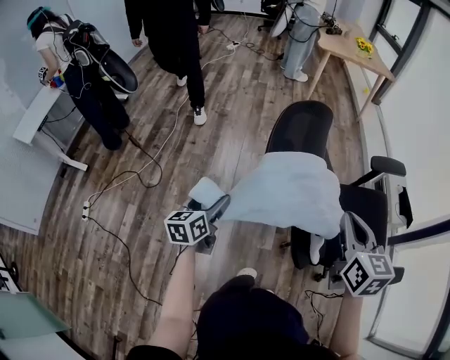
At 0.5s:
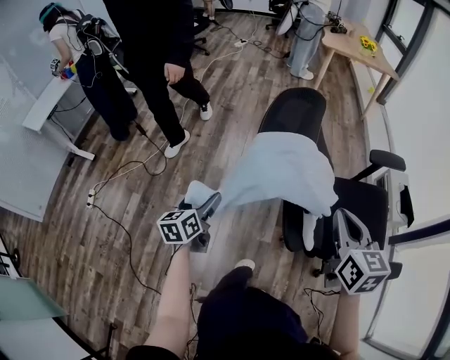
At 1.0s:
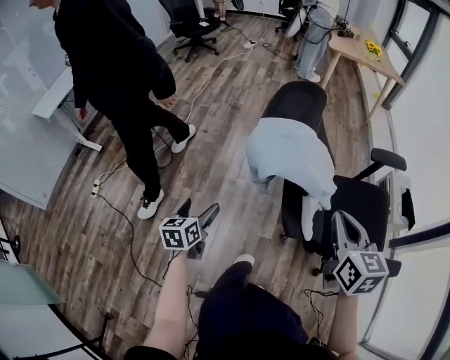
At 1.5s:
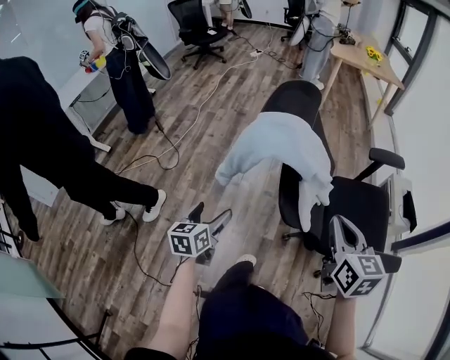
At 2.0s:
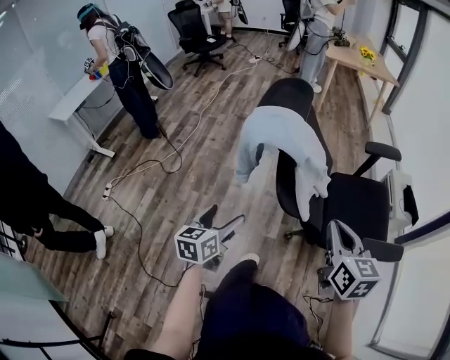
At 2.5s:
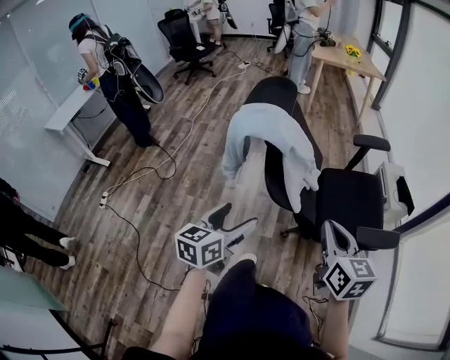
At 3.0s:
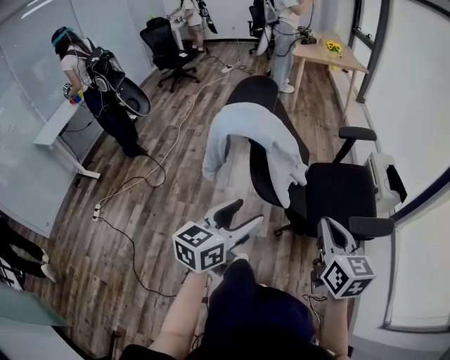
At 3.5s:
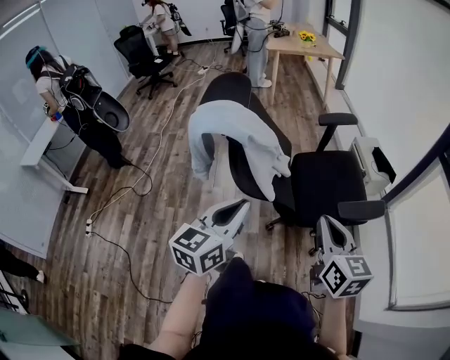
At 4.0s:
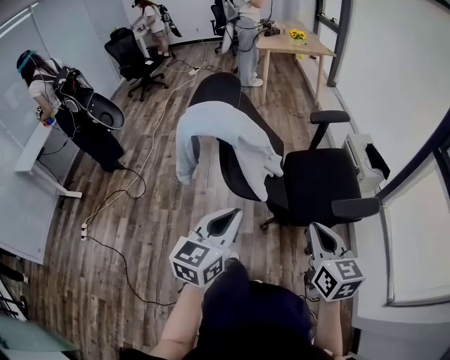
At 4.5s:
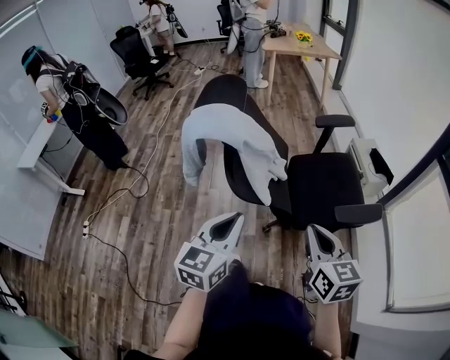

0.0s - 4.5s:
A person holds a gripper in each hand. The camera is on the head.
0.0s - 2.0s: The two grippers go about 25 cm backward.
2.0s - 4.5s: The left gripper travels to the right and upward by roughly 20 cm, swivels about 30 degrees, and closes its fingers. Meanwhile the right gripper travels to the right and backward by some 10 cm.

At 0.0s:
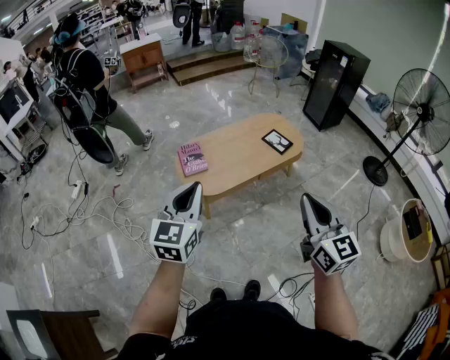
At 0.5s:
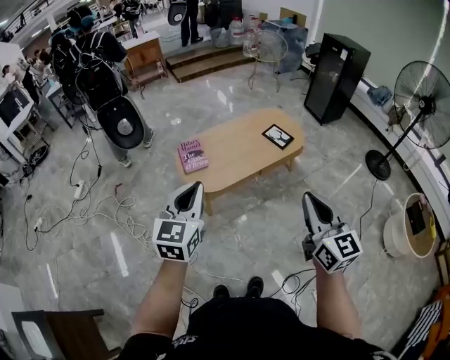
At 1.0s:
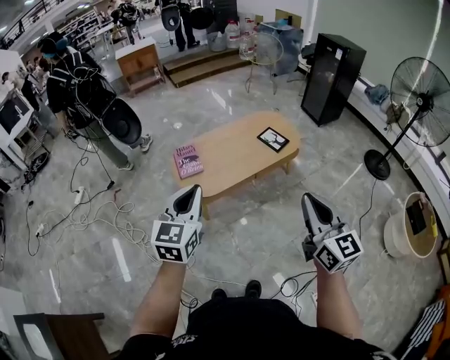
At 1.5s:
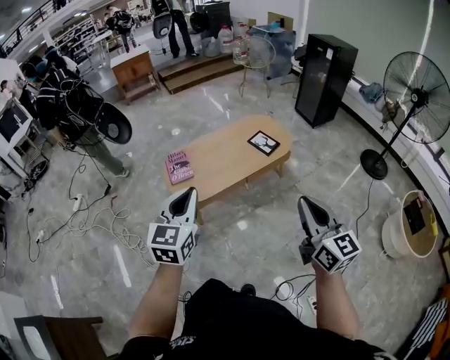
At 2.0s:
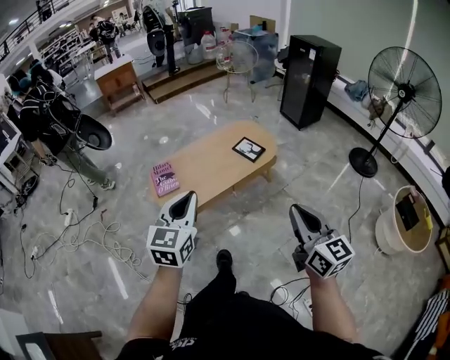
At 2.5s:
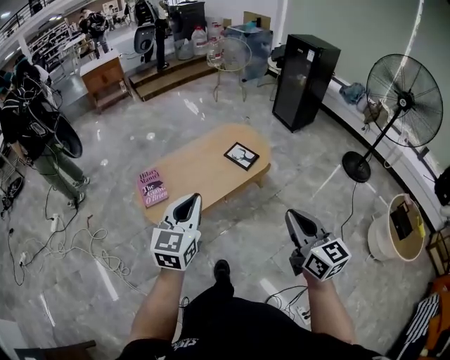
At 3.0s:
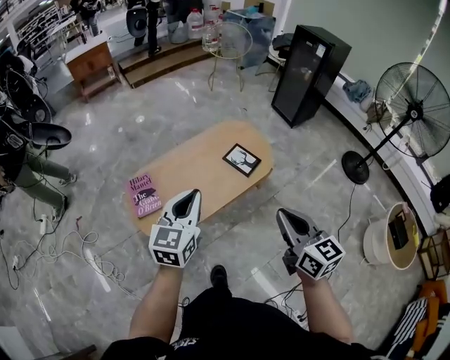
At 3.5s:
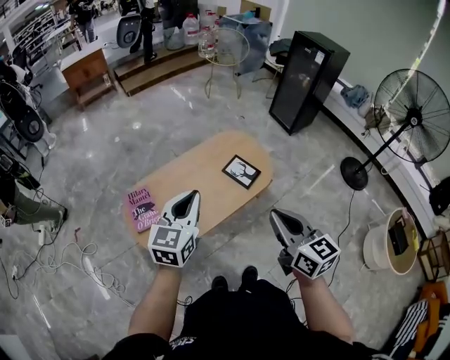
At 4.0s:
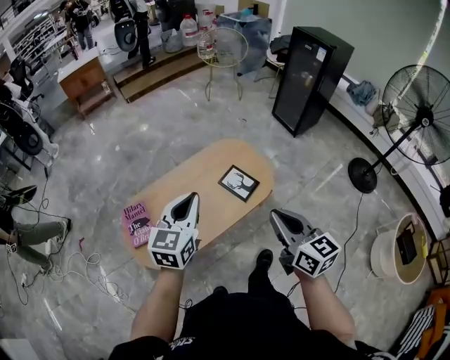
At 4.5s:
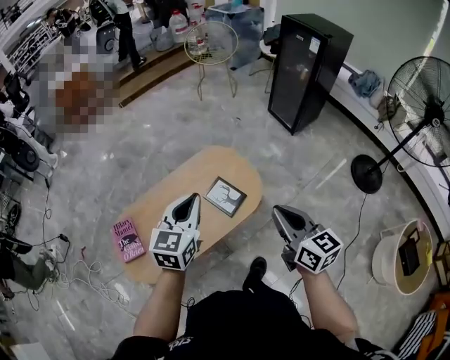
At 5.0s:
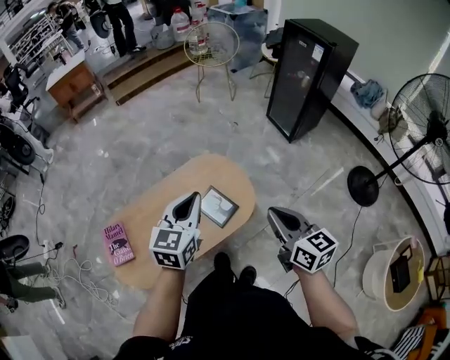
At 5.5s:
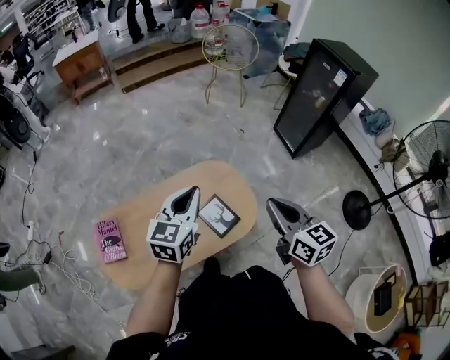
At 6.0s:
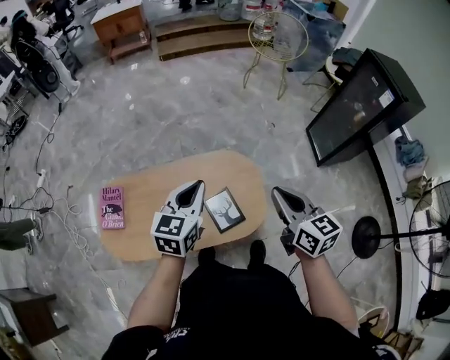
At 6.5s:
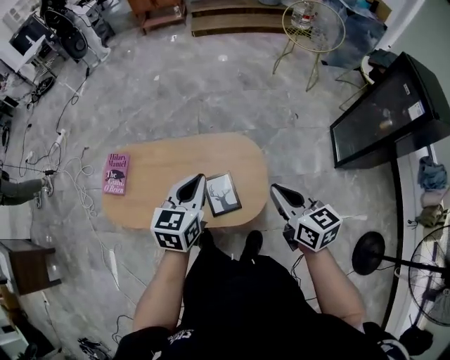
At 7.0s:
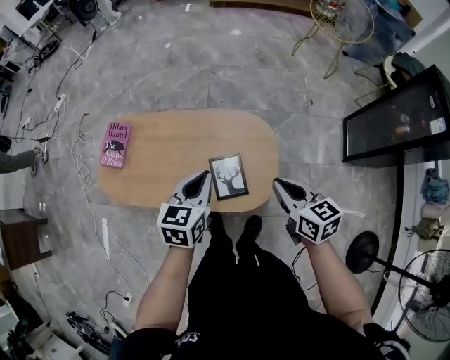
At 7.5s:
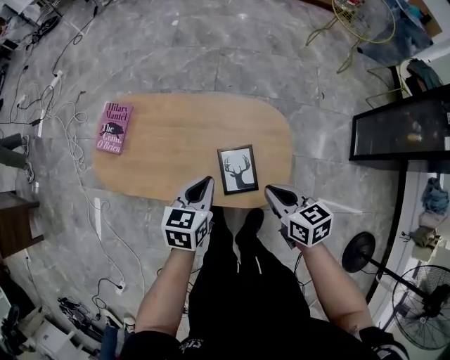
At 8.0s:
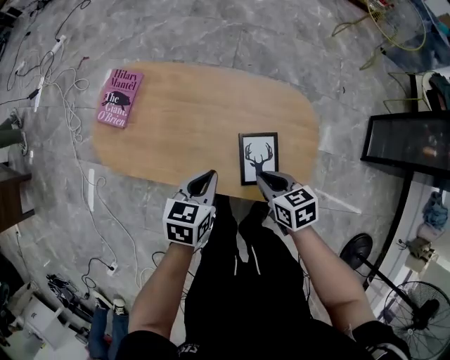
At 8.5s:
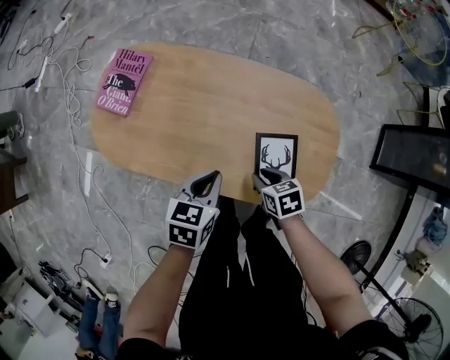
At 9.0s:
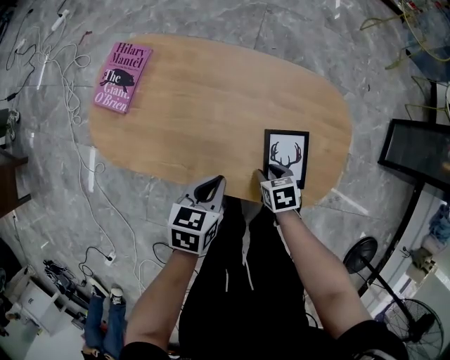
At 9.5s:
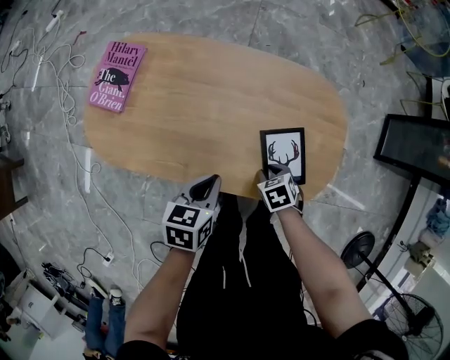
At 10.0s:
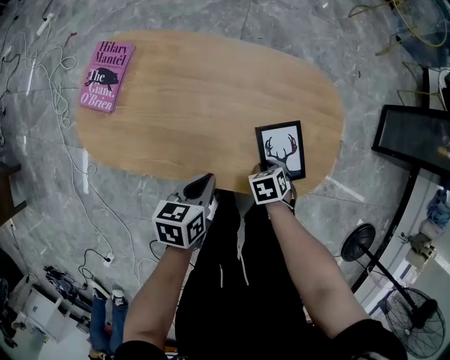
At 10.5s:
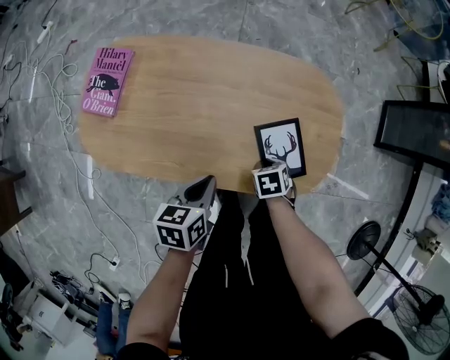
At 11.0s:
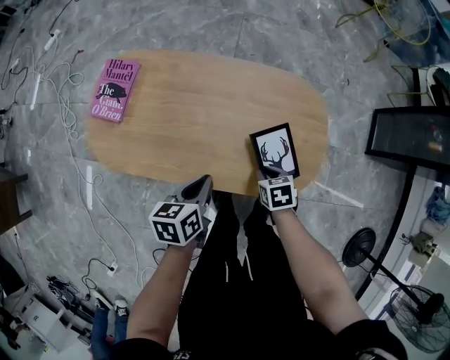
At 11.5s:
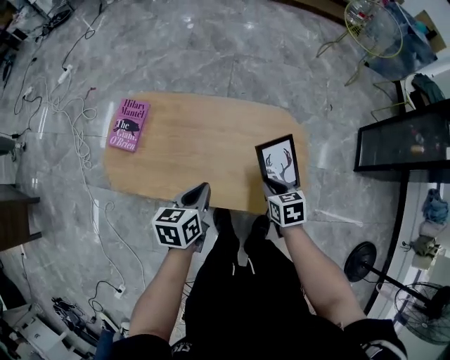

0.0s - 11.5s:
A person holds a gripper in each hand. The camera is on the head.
0.0s - 2.0s: Both grippers travel together to the right, roughly 15 cm.
2.0s - 4.0s: Both grippers are carried forward, approximately 40 cm.
4.0s - 6.0s: Both grippers travel together forward and to the right, some 35 cm. The left gripper rotates approximately 20 degrees. Meanwhile the right gripper turns by approximately 20 degrees.
6.0s - 7.5s: Both grippers travel together downward, some 20 cm. The left gripper rotates some 30 degrees, while the right gripper rotates approximately 40 degrees.
7.5s - 9.5s: The right gripper goes roughly 35 cm downward, tips its fingers downward by approximately 40 degrees, and opens its fingers. Meanwhile the left gripper heads downward, covering approximately 20 cm.
9.5s - 11.5s: The two grippers go some 20 cm upward. The right gripper turns by about 30 degrees.

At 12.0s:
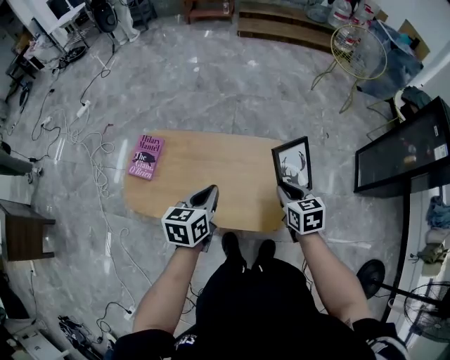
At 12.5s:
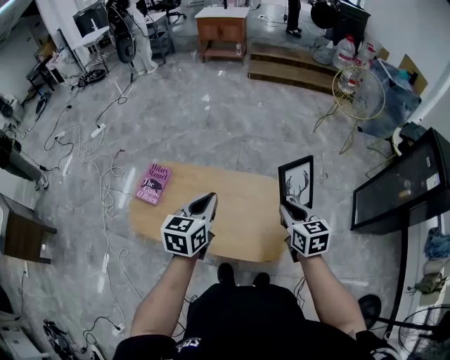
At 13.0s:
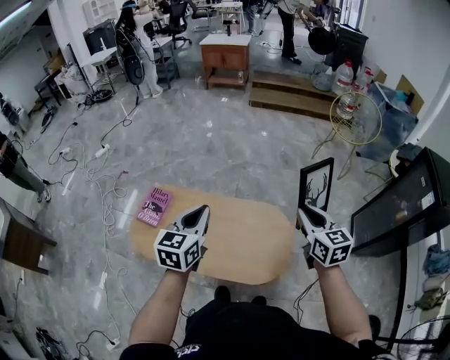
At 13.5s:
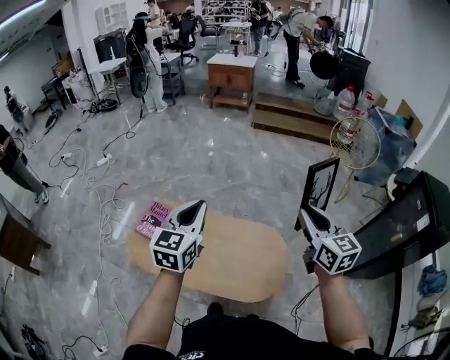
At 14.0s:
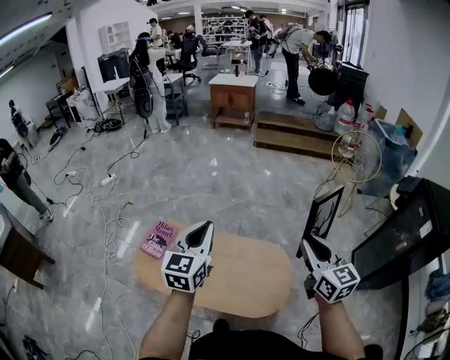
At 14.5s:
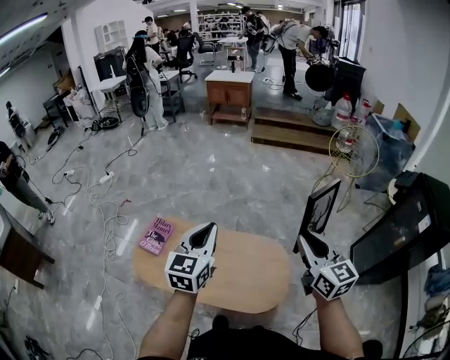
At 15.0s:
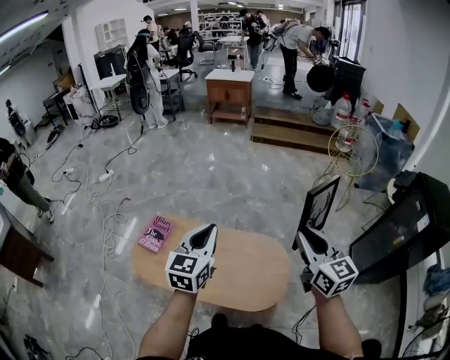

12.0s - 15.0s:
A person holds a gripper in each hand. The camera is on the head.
12.0s - 13.5s: Both grippers move upward, some 30 cm. The right gripper points its fingers about 30 degrees further upward; the left gripper changes its angle by about 30 degrees.
13.5s - 15.0s: The right gripper goes about 5 cm backward.

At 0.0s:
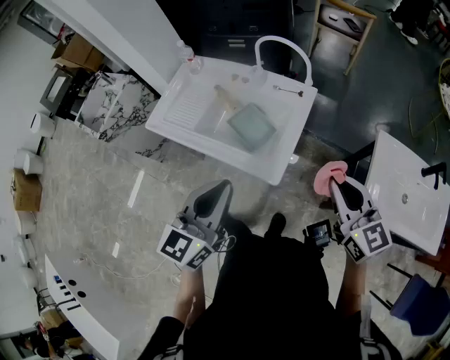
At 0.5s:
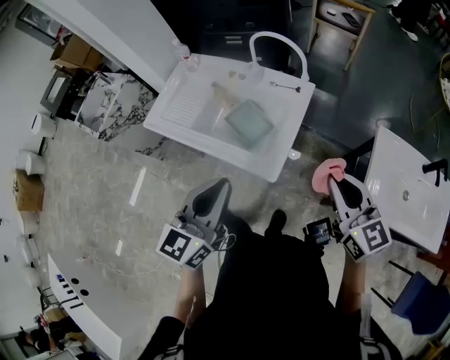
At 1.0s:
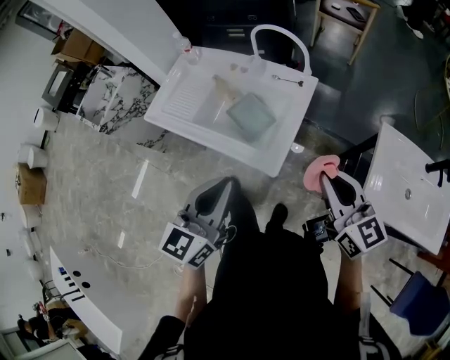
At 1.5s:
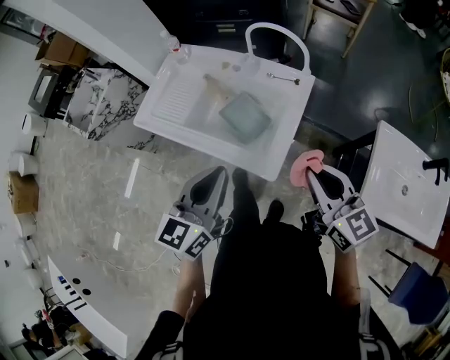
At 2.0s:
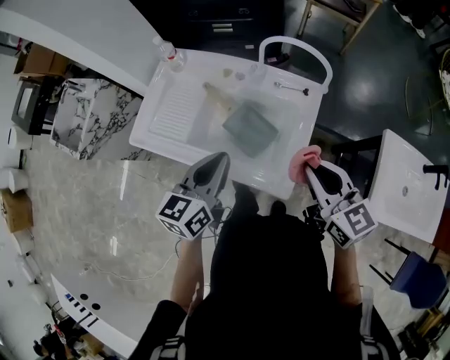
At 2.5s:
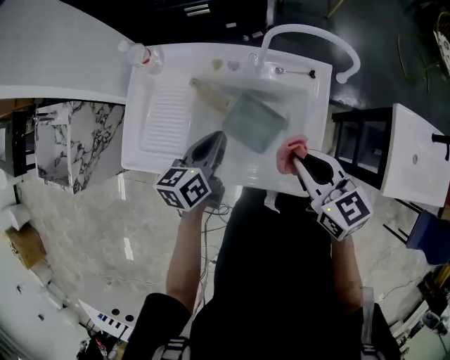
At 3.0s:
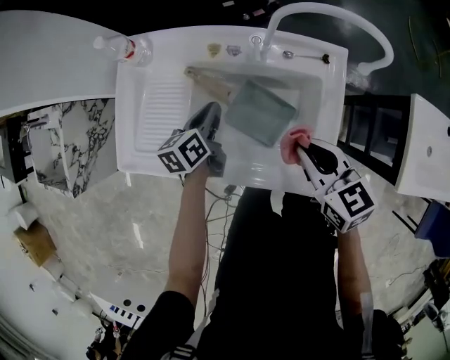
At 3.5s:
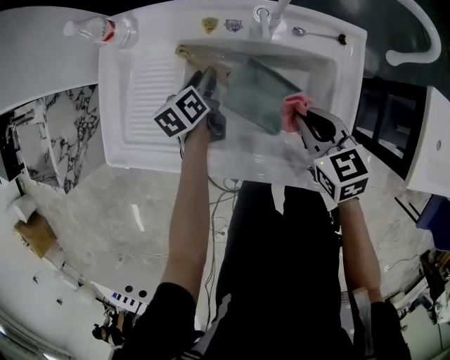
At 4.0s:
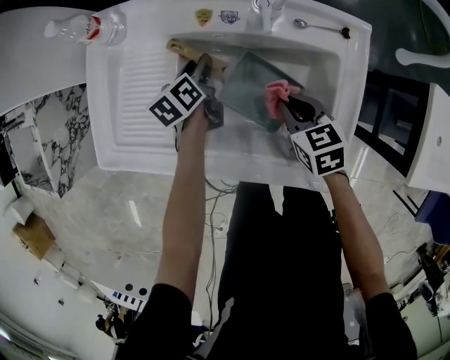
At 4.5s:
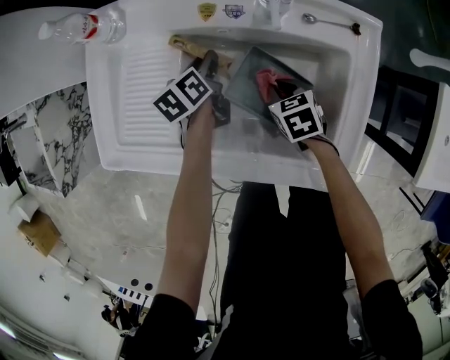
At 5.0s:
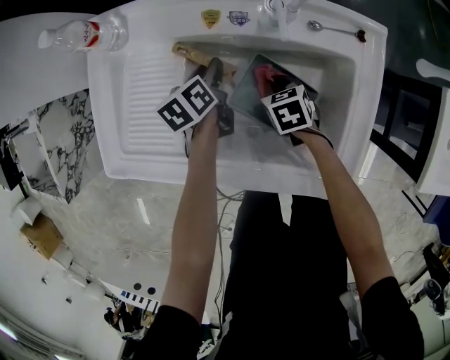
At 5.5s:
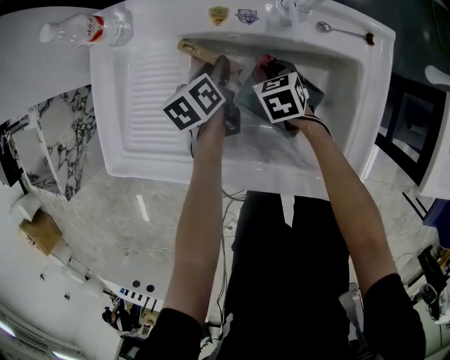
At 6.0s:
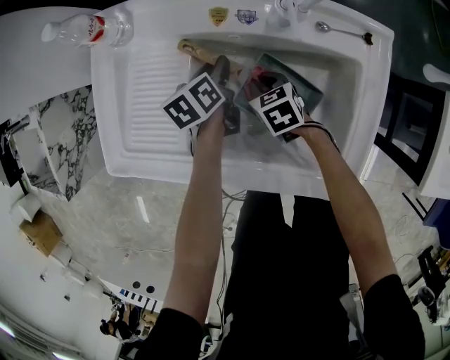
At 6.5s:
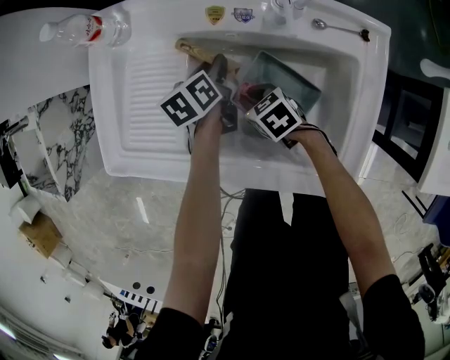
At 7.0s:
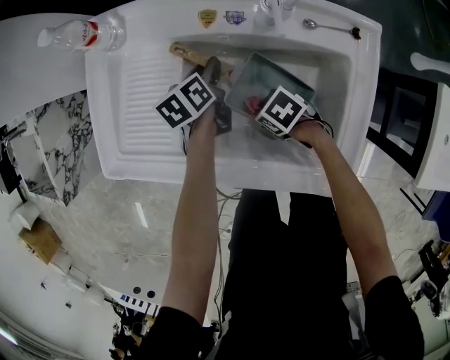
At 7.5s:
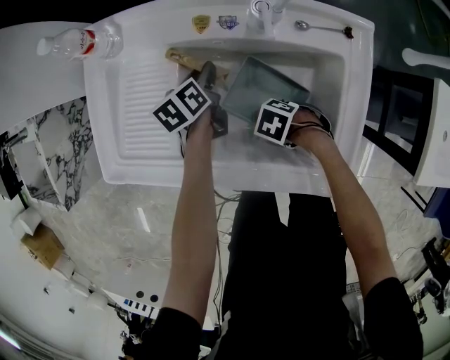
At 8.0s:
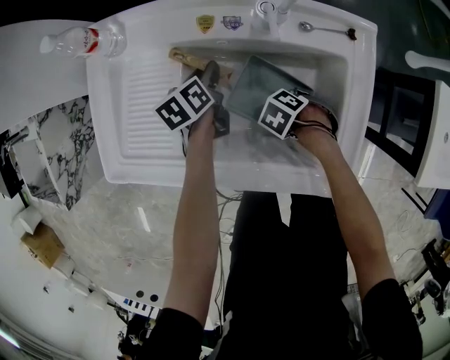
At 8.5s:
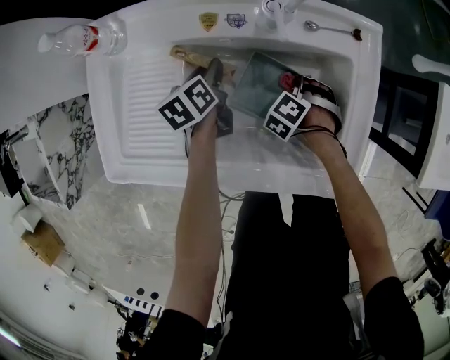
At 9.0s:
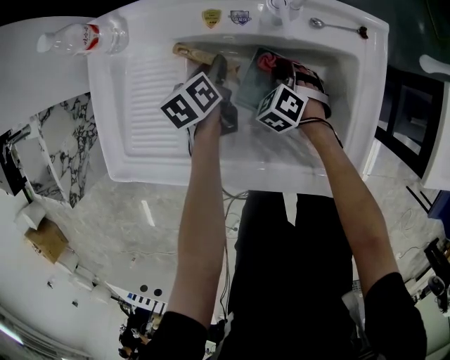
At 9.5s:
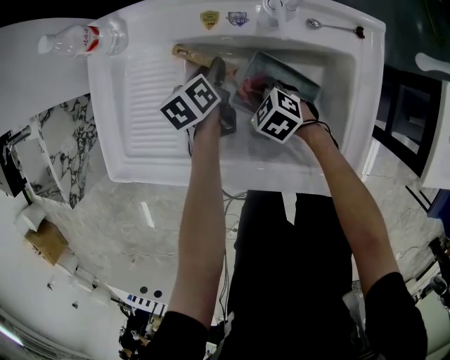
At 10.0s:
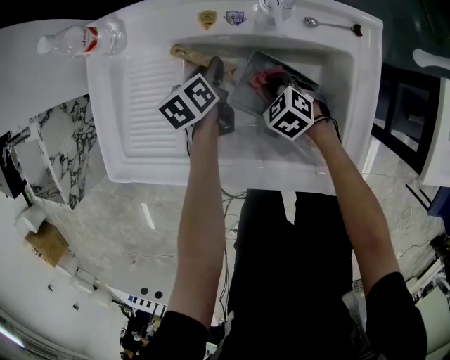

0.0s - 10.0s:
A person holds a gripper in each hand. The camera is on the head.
0.0s - 2.0s: The left gripper shifts approximately 20 cm forward and downward. The right gripper goes about 20 cm forward and to the left.
2.0s - 4.0s: Both grippers travel together downward and forward, roughly 40 cm. The left gripper rotates approximately 30 degrees, and opens up. Meanwhile the right gripper tips its fingers downward by some 30 degrees.
4.0s - 6.0s: The right gripper heads downward, to the left and forward, covering about 15 cm.
6.0s - 8.0s: The right gripper changes place by about 15 cm, and swivels some 50 degrees.
8.0s - 10.0s: The right gripper shifts by some 10 cm, and rotates approximately 40 degrees.
